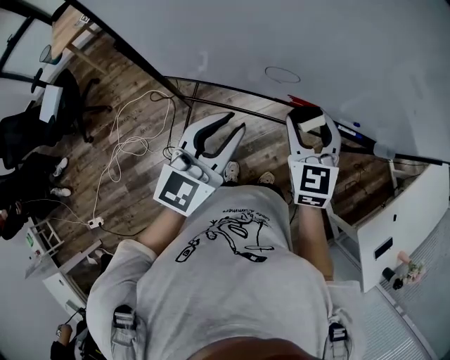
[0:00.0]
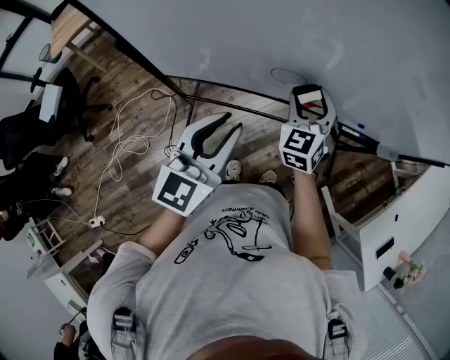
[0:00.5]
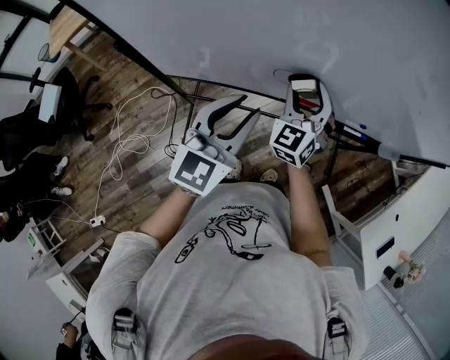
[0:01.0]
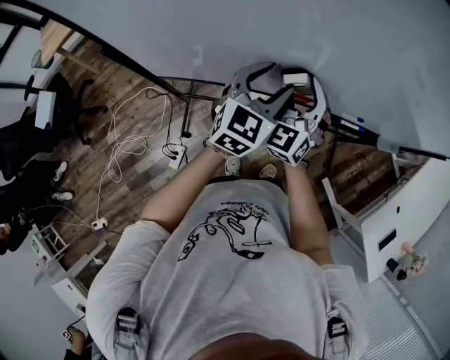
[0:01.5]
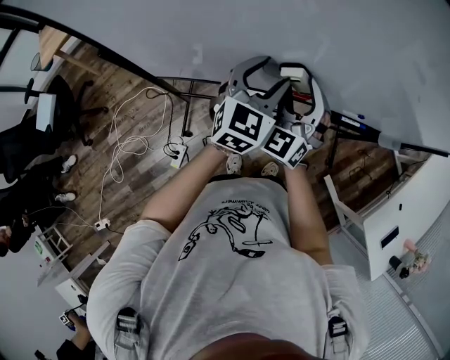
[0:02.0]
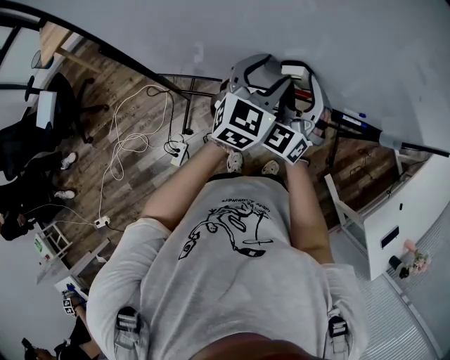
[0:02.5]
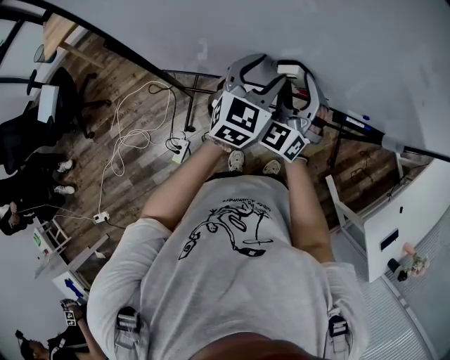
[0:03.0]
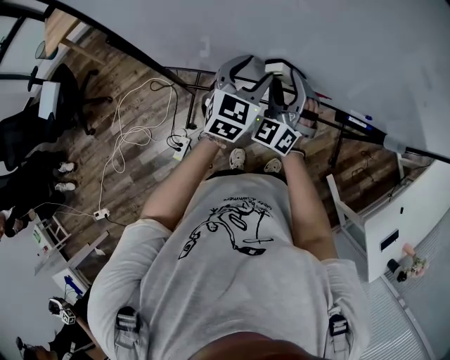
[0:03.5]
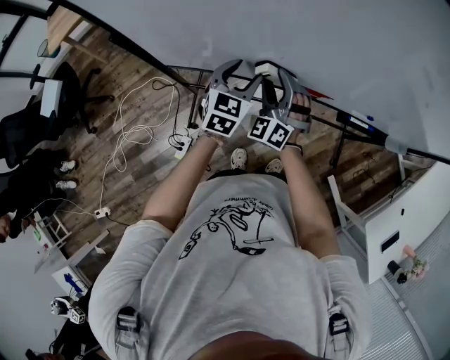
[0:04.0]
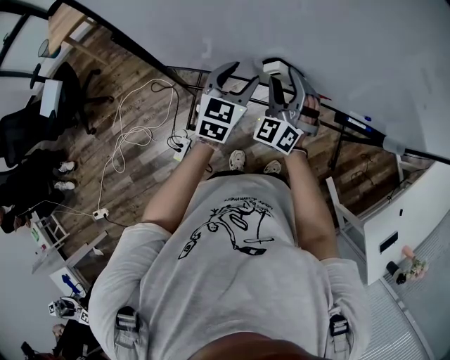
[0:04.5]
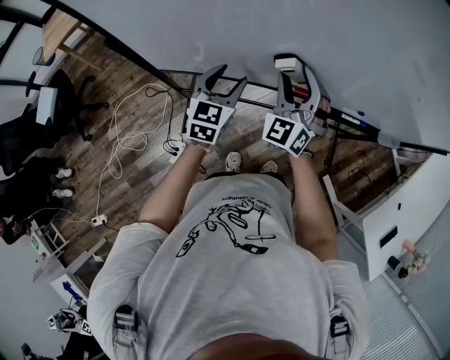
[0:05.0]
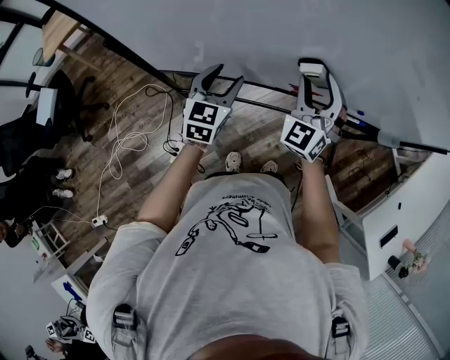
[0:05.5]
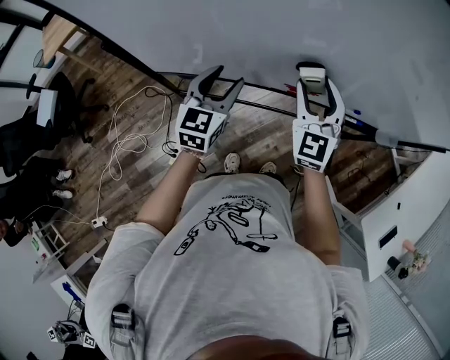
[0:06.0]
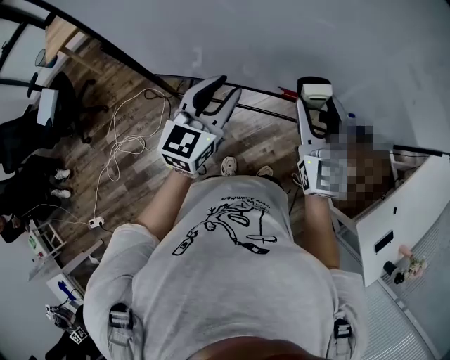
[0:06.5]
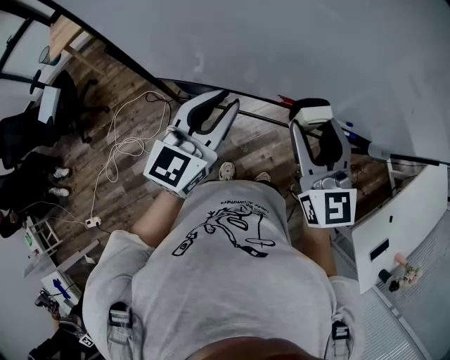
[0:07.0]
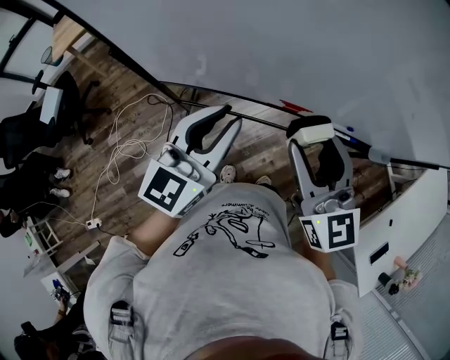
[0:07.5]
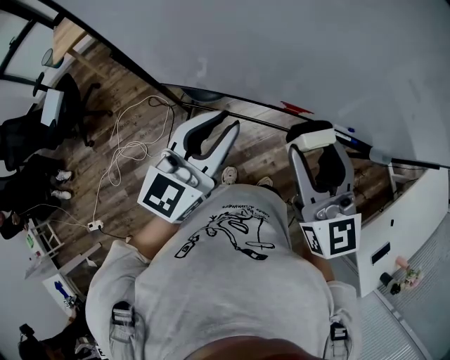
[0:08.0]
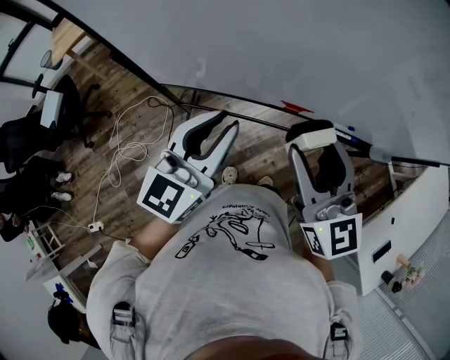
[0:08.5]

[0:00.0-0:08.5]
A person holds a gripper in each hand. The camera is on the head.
0:00.0 to 0:02.0: The left gripper goes roughly 15 cm forward, and opens. Meanwhile the right gripper goes some 10 cm forward, and turns by some 30 degrees.
0:02.0 to 0:04.0: Both grippers travel together downward and to the left, approximately 15 cm. The right gripper turns by approximately 20 degrees.
0:04.0 to 0:06.5: The right gripper heads upward and to the right, covering approximately 20 cm, and twists some 40 degrees clockwise, seen from behind; the left gripper is displaced upward and backward by roughly 15 cm, and closes its fingers.
0:06.5 to 0:08.5: Both grippers move upward and backward, some 10 cm.

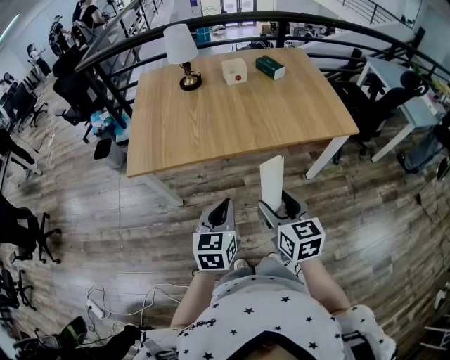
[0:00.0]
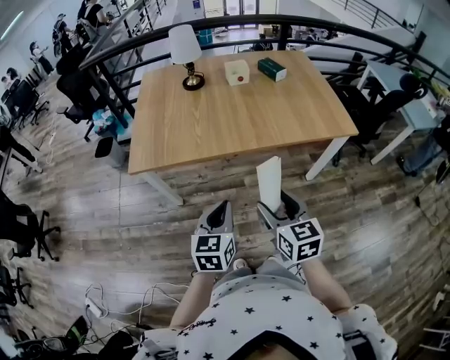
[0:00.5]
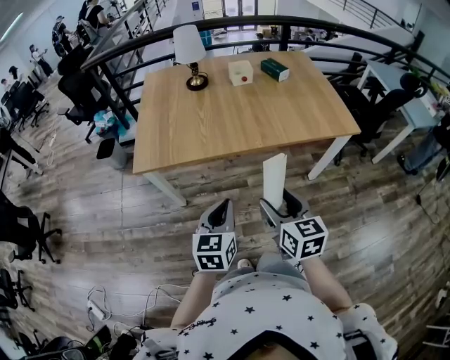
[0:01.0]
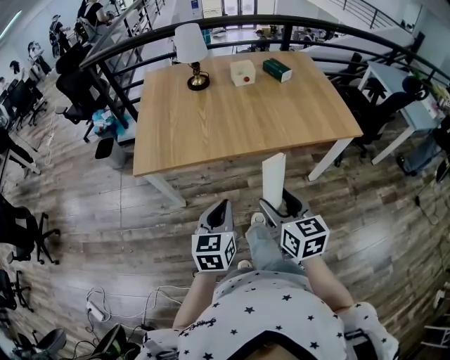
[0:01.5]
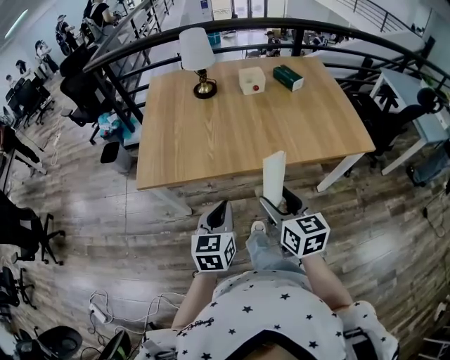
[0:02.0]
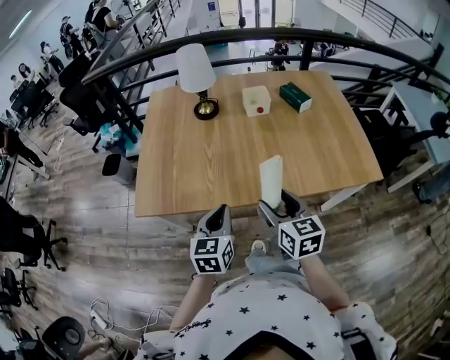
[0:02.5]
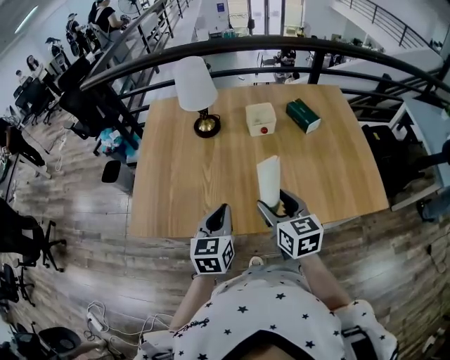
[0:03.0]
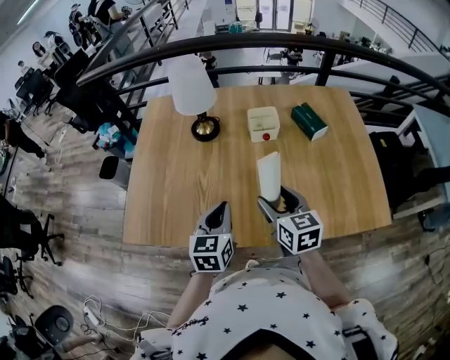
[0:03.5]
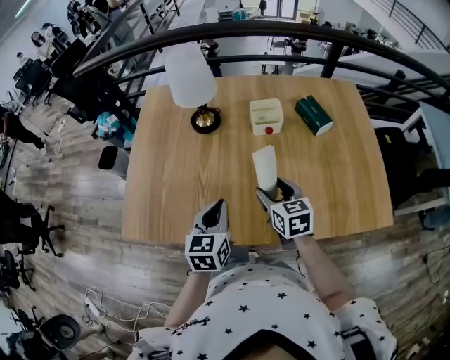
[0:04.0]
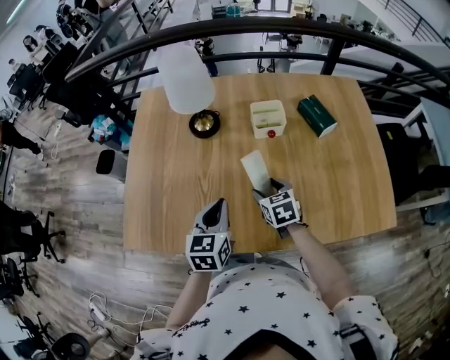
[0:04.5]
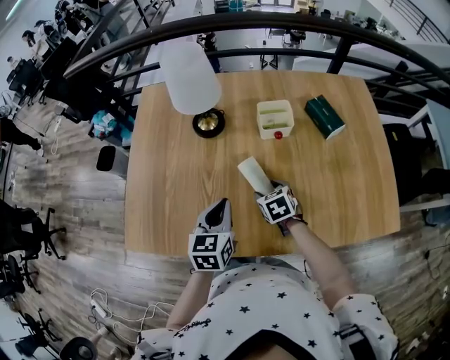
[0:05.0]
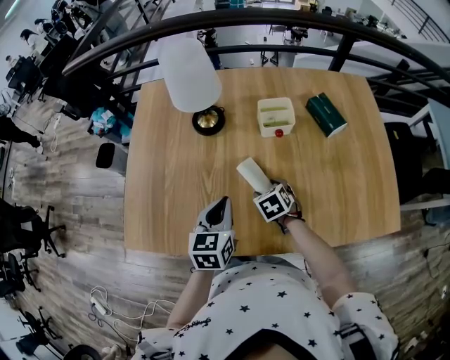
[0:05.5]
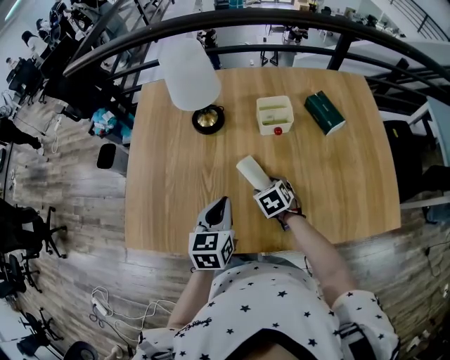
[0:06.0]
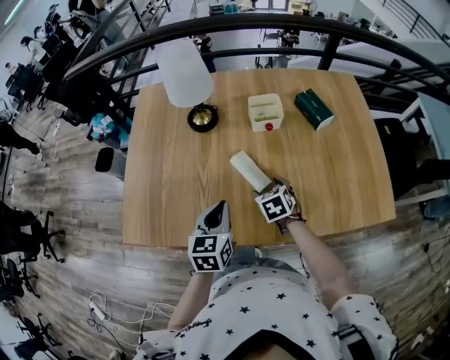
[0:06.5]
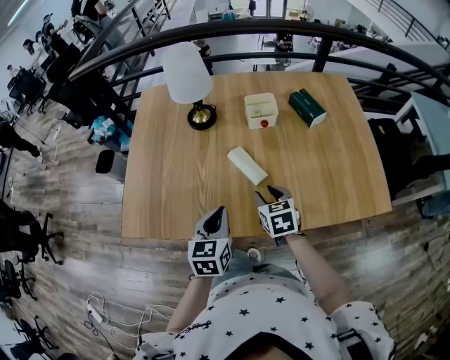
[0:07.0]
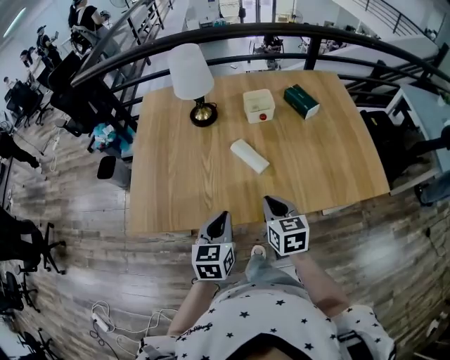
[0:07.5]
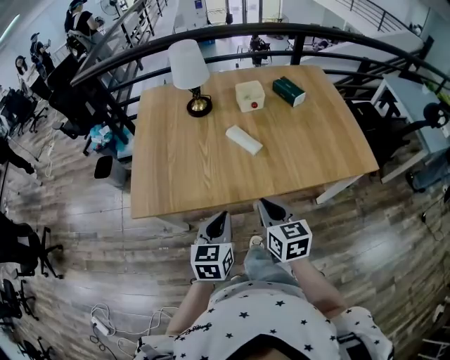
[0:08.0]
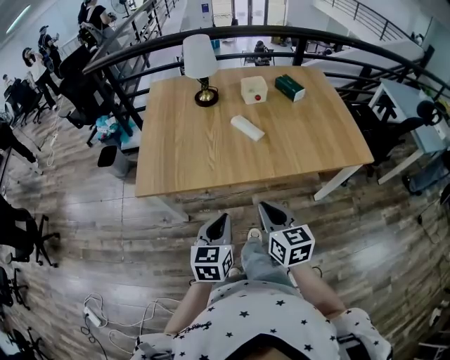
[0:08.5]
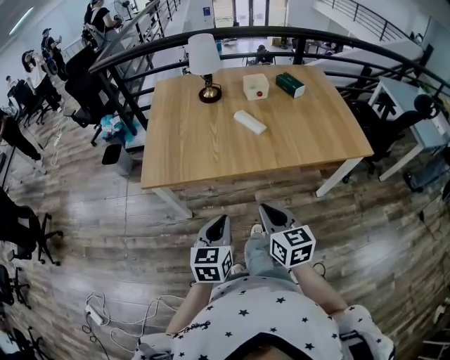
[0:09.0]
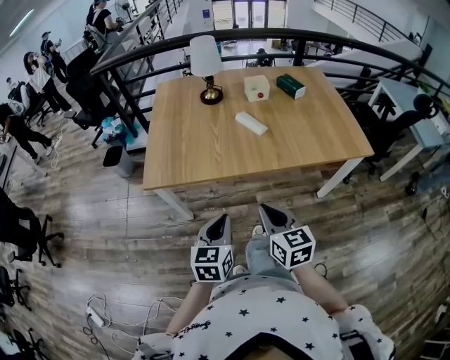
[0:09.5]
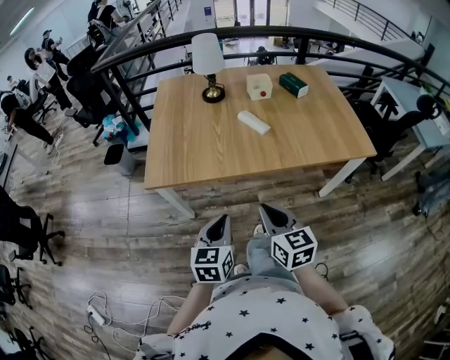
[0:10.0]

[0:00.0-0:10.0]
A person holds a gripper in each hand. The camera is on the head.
0:00.0 to 0:02.0: The grippers both shift forward and to the left by some 10 cm.
0:02.0 to 0:04.0: The grippers both shift forward by roughly 35 cm.
0:04.0 to 0:06.0: The right gripper is displaced downward and forward by some 15 cm, and changes its angle by about 30 degrees; the left gripper goes roughly 5 cm forward.
0:06.0 to 0:08.0: The left gripper goes some 30 cm backward. The right gripper travels backward and upward by roughly 35 cm, tips its fingers upward by approximately 40 degrees, and closes its fingers.
0:08.0 to 0:10.0: The grippers both shift backward by about 15 cm.

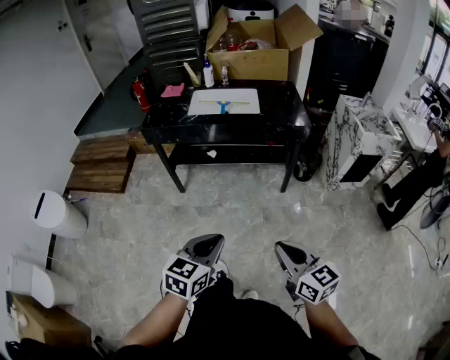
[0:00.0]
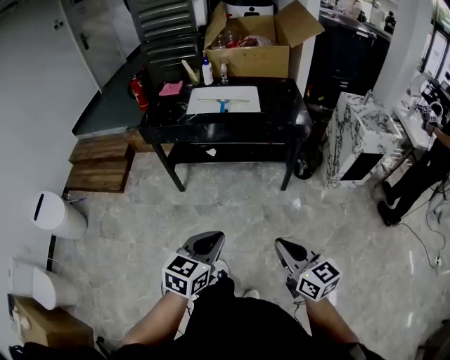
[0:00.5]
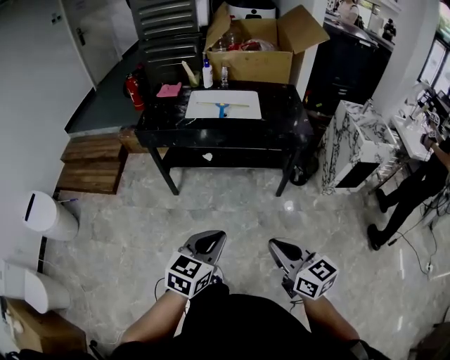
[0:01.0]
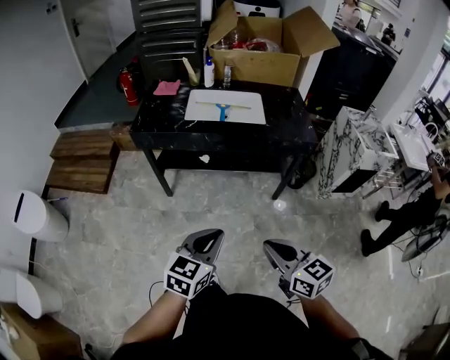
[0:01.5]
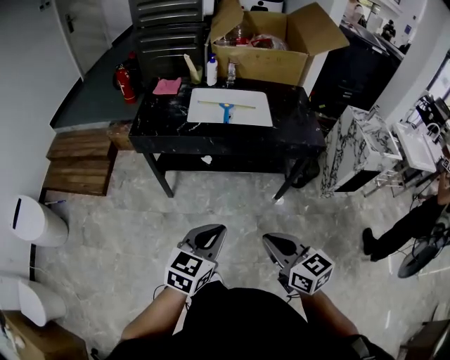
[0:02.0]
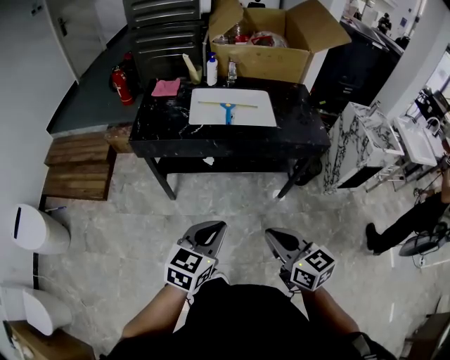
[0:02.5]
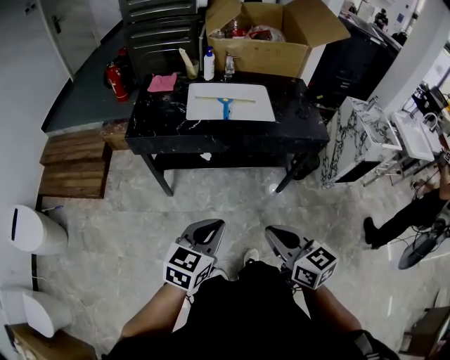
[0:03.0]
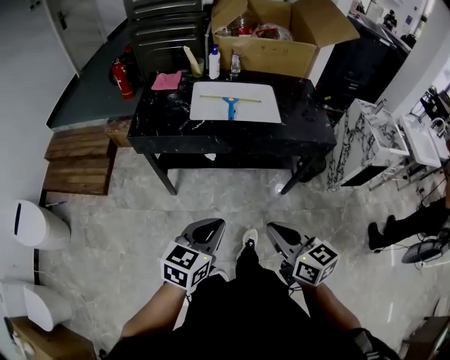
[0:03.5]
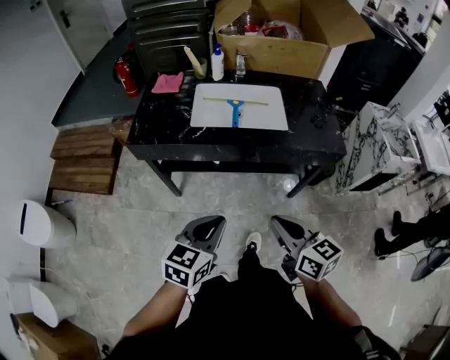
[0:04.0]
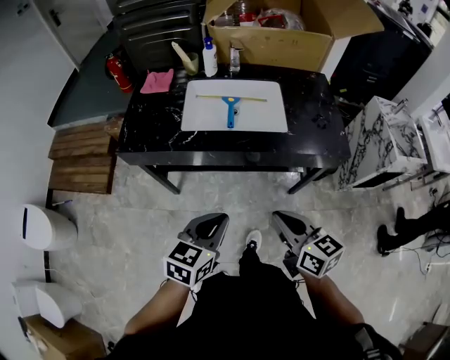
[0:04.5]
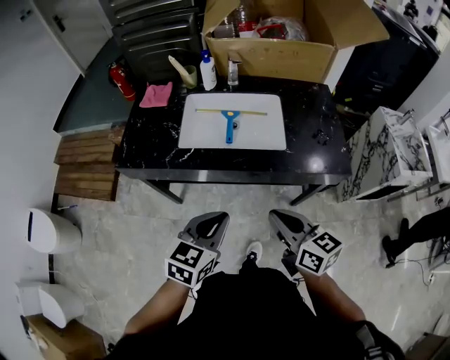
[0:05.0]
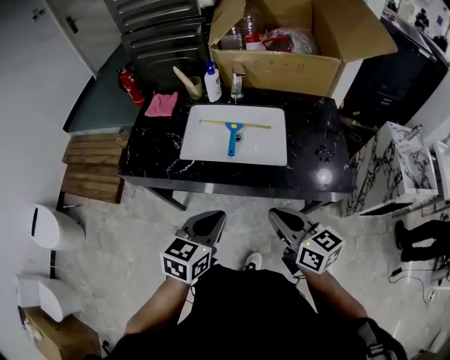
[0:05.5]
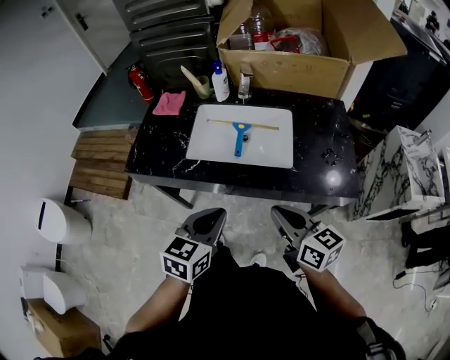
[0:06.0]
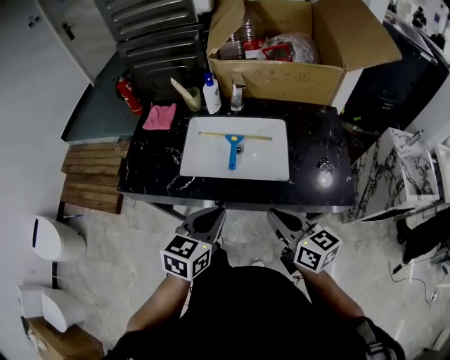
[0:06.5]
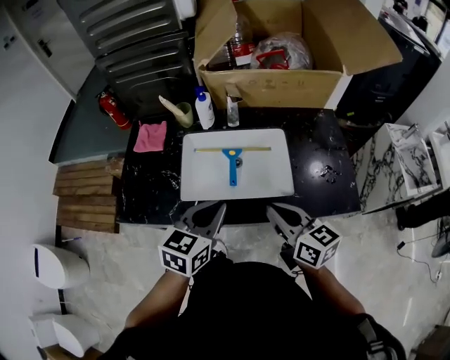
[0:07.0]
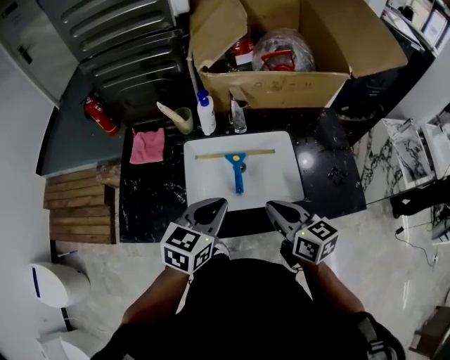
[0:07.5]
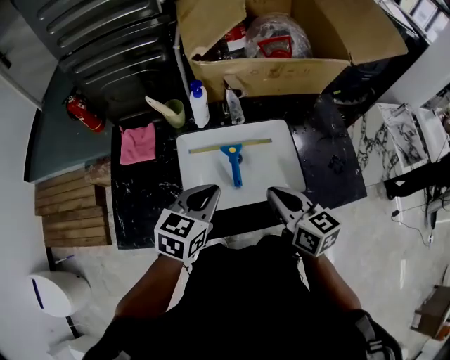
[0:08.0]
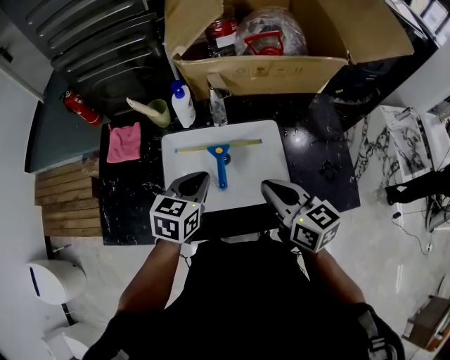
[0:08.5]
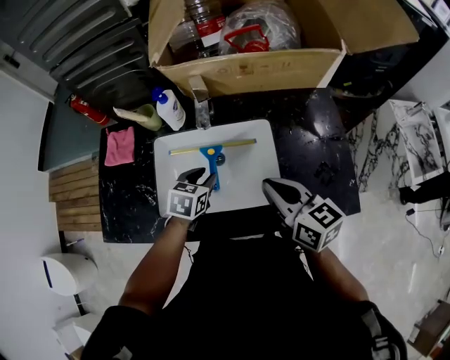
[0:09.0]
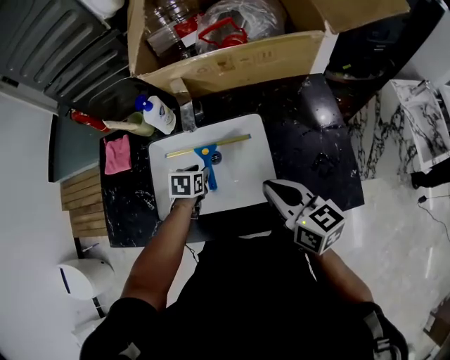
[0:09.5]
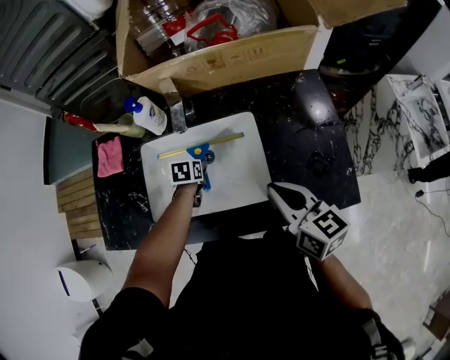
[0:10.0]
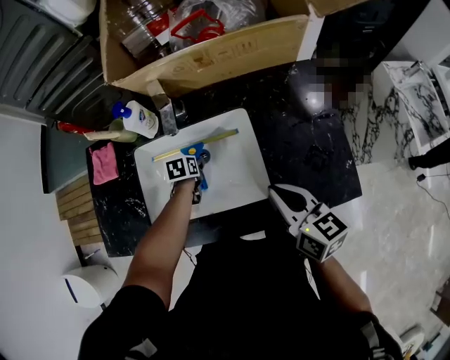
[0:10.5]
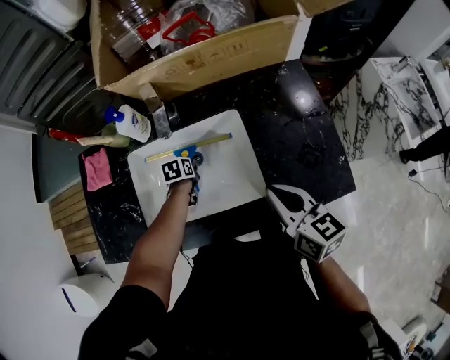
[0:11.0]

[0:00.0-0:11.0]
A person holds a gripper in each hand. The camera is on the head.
0:00.0 to 0:02.0: The left gripper travels forward by about 20 cm; the right gripper is displaced forward and to the left by approximately 25 cm.
0:02.0 to 0:03.5: Both grippers move forward, approximately 5 cm.
0:03.5 to 0:05.5: The left gripper travels forward and to the right by approximately 25 cm; the right gripper travels forward by some 25 cm.
0:05.5 to 0:07.5: The grippers both shift forward by roughly 20 cm.
0:07.5 to 0:09.0: The right gripper travels to the right and forward by roughly 10 cm; the left gripper goes some 20 cm downward, forward and to the right, swivels about 20 degrees, and opens its fingers.
0:09.0 to 0:11.0: The left gripper moves downward and forward, some 20 cm, and turns by roughly 30 degrees, while the right gripper shifts some 5 cm to the right.
